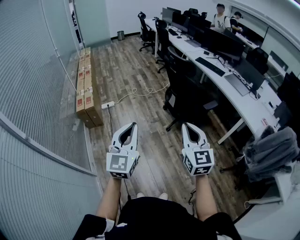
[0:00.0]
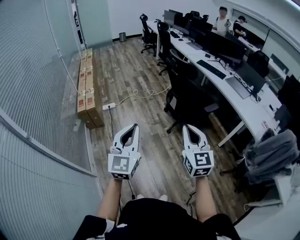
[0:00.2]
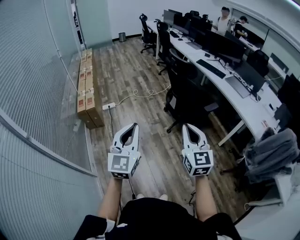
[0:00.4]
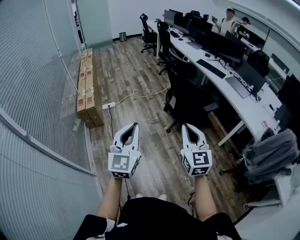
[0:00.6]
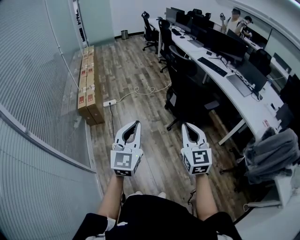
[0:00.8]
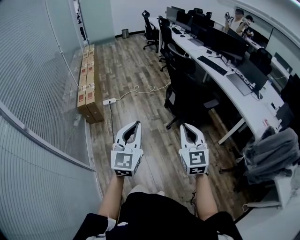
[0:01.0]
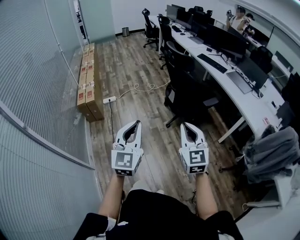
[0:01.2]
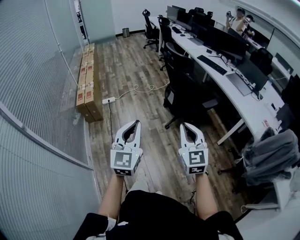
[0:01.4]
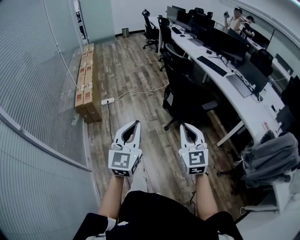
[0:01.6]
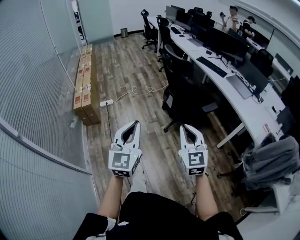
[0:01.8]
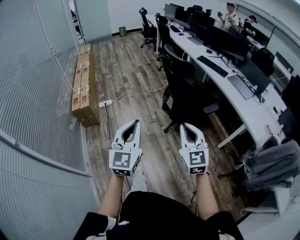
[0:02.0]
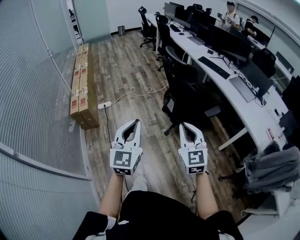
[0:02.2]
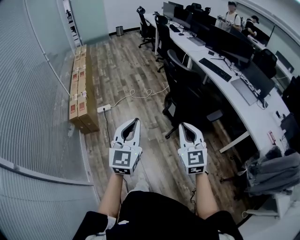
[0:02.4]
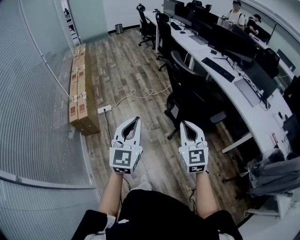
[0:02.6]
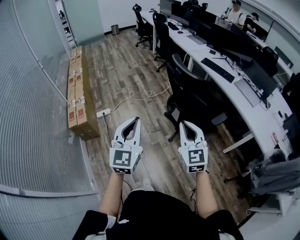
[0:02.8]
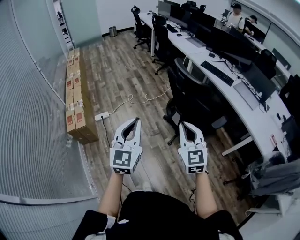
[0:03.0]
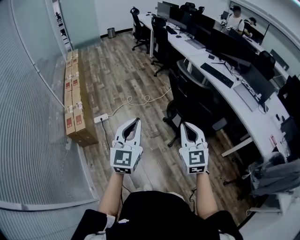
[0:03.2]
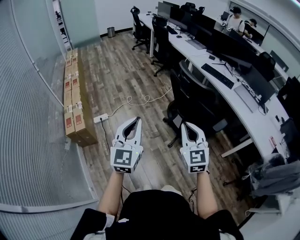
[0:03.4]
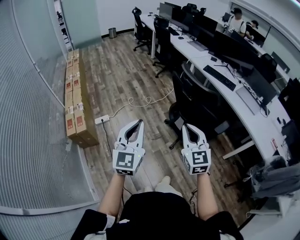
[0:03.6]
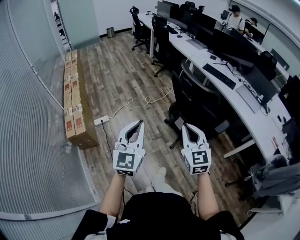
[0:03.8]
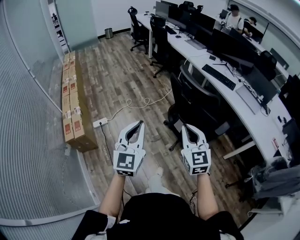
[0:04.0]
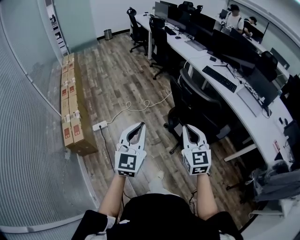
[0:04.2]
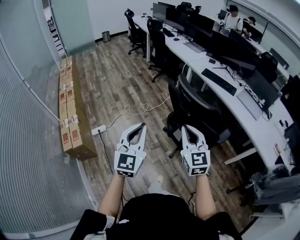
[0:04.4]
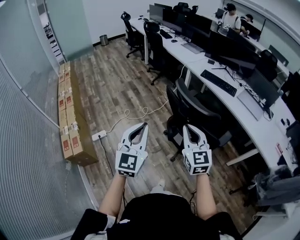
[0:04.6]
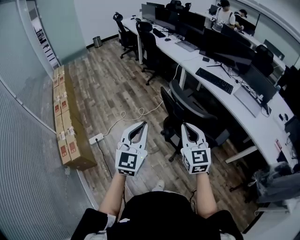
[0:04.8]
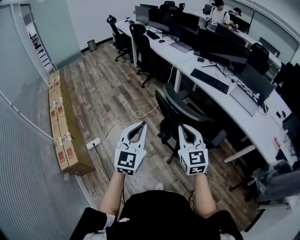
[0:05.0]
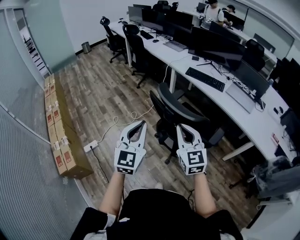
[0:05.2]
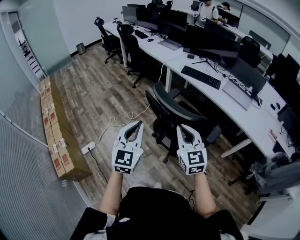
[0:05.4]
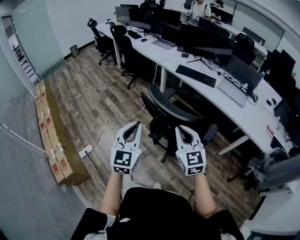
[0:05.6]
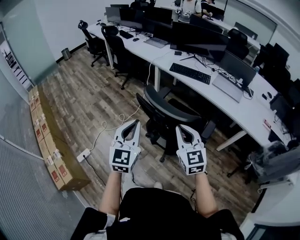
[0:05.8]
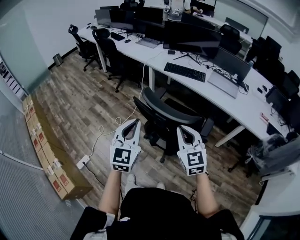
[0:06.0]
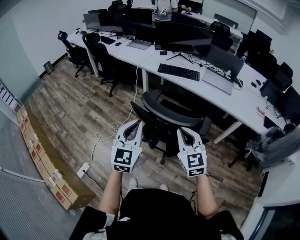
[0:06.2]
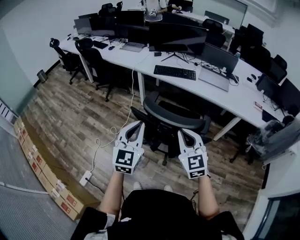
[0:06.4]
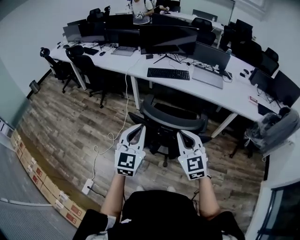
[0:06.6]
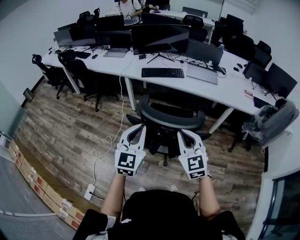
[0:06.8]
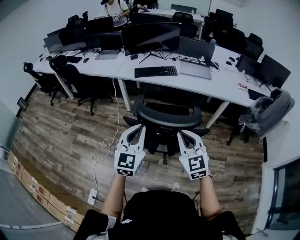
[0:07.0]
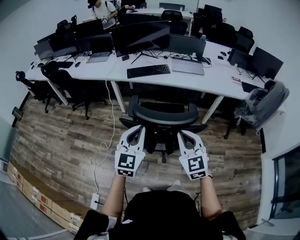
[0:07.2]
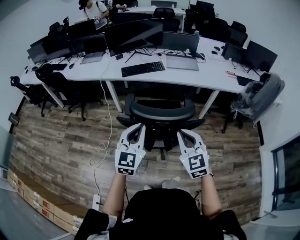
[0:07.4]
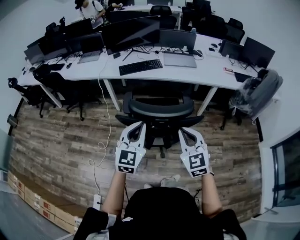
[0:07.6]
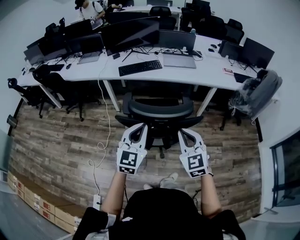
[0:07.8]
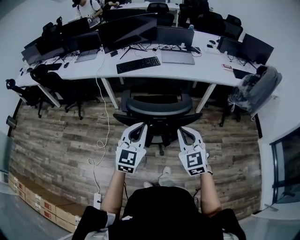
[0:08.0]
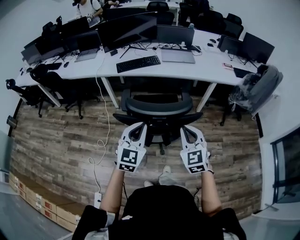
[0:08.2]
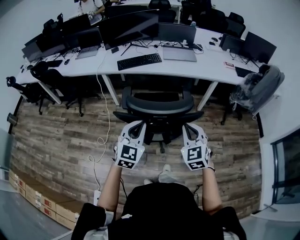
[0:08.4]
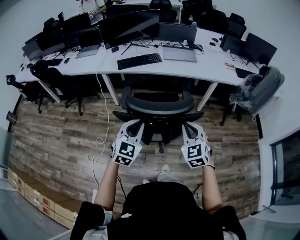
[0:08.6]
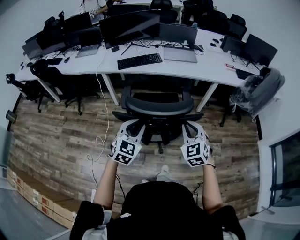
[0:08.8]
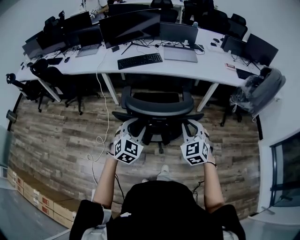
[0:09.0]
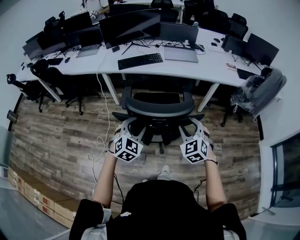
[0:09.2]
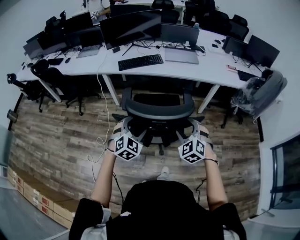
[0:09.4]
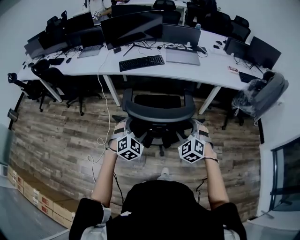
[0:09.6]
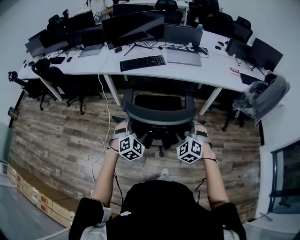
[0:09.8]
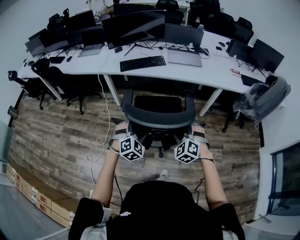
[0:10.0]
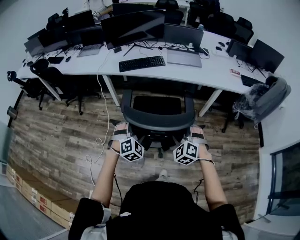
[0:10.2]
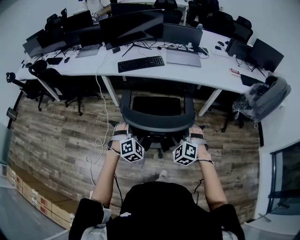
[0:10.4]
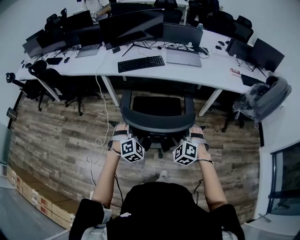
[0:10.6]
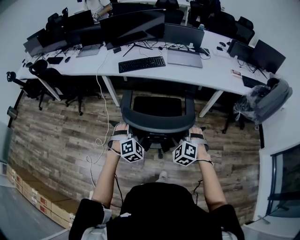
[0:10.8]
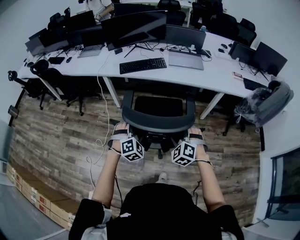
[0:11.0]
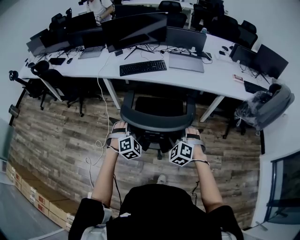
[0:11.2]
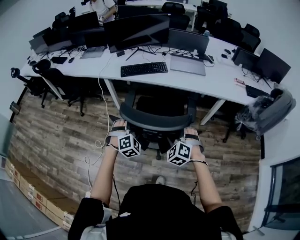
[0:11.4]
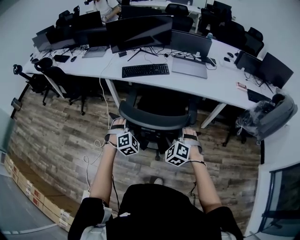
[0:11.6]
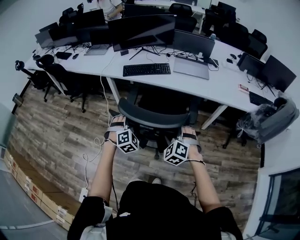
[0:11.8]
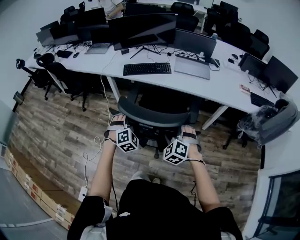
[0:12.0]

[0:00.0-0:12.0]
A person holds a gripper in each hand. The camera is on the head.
0:00.0 to 0:01.6: Both grippers travel together to the right, approximately 5 cm.
0:01.6 to 0:03.0: The two grippers go some 30 cm forward.
0:03.0 to 0:04.4: Both grippers travel together forward, about 15 cm.
0:04.4 to 0:06.0: The right gripper heads forward and to the right, covering approximately 15 cm, while the left gripper travels forward by roughly 20 cm, and turns by about 20 degrees.
0:06.0 to 0:07.6: The right gripper changes place by approximately 5 cm, and swivels approximately 30 degrees, while the left gripper ends up about 5 cm from where it was, and turns by approximately 40 degrees.
0:07.6 to 0:09.0: The left gripper goes approximately 10 cm downward, and changes its angle by about 30 degrees. The right gripper is displaced downward and forward by approximately 10 cm.
0:09.0 to 0:10.4: The right gripper is displaced downward and forward by about 10 cm, swivels roughly 30 degrees, and opens, while the left gripper heads forward and downward, covering about 10 cm, turns by approximately 30 degrees, and opens its fingers.
0:10.4 to 0:12.0: The two grippers go roughly 10 cm forward.

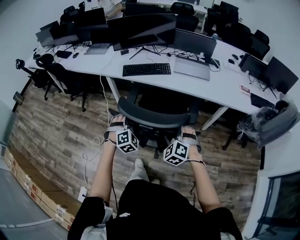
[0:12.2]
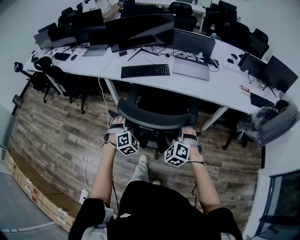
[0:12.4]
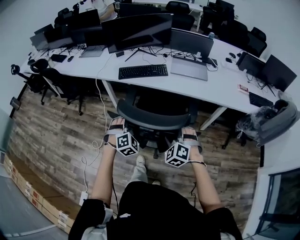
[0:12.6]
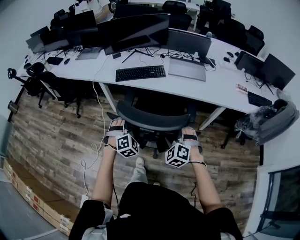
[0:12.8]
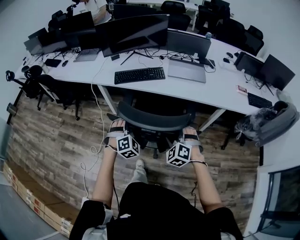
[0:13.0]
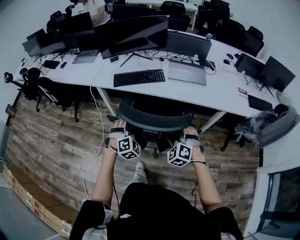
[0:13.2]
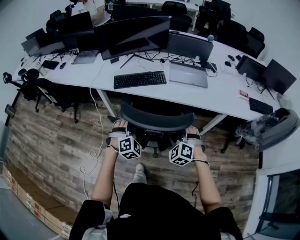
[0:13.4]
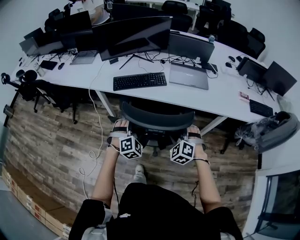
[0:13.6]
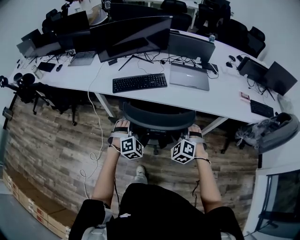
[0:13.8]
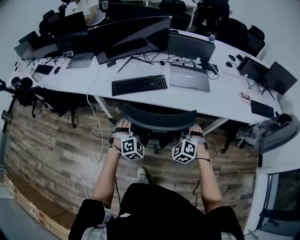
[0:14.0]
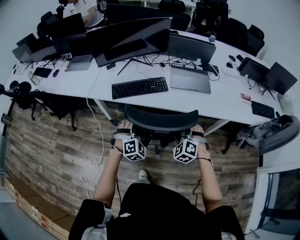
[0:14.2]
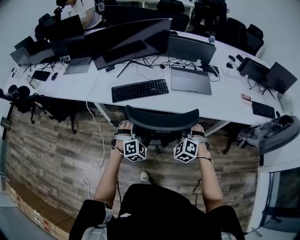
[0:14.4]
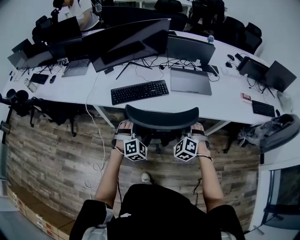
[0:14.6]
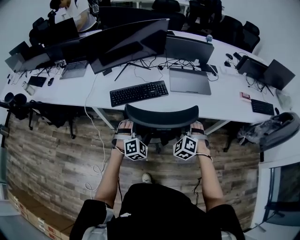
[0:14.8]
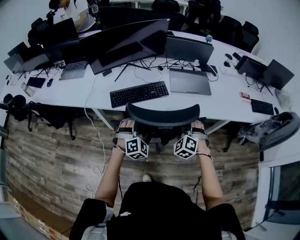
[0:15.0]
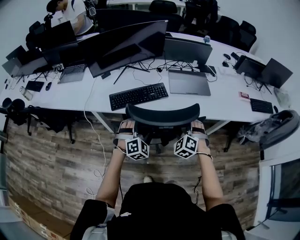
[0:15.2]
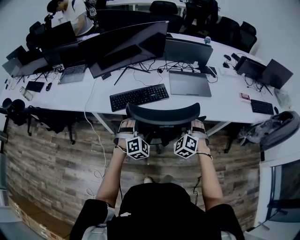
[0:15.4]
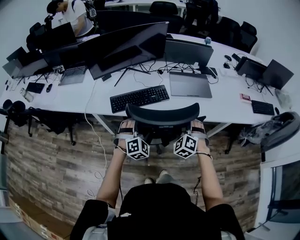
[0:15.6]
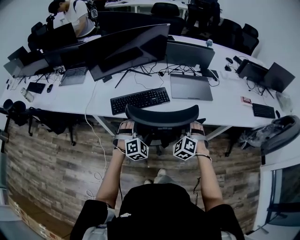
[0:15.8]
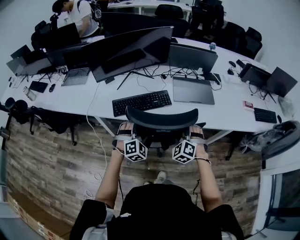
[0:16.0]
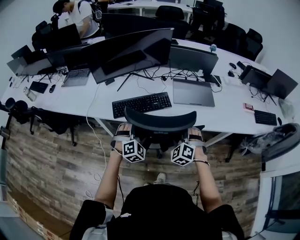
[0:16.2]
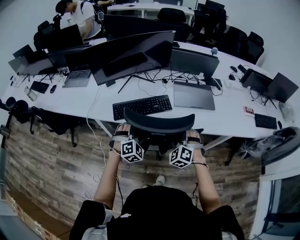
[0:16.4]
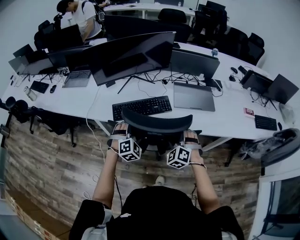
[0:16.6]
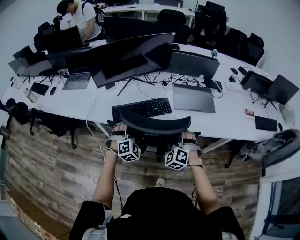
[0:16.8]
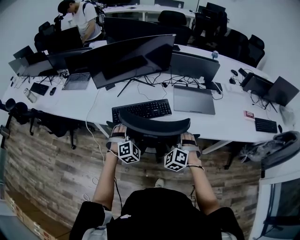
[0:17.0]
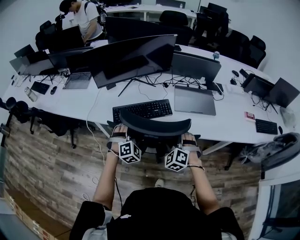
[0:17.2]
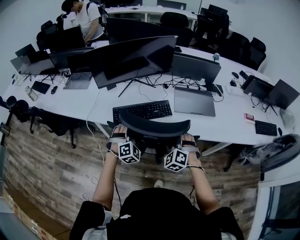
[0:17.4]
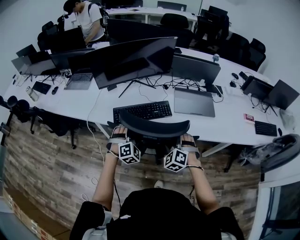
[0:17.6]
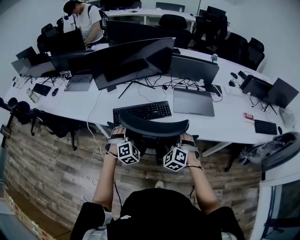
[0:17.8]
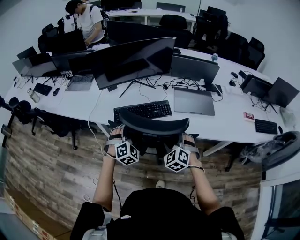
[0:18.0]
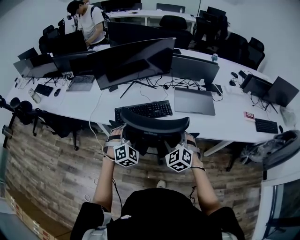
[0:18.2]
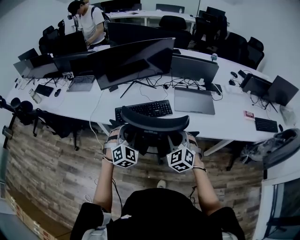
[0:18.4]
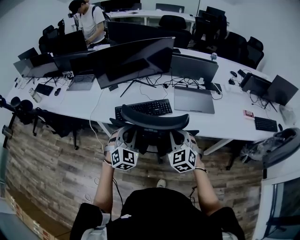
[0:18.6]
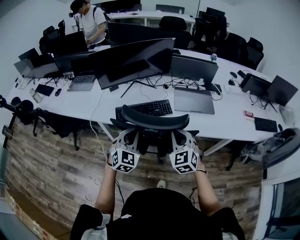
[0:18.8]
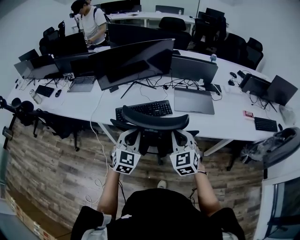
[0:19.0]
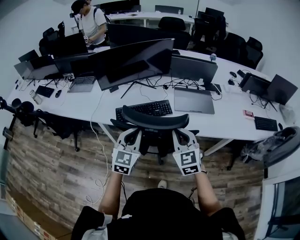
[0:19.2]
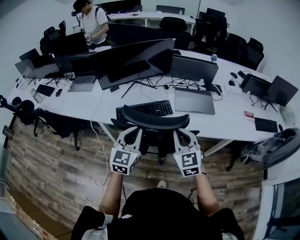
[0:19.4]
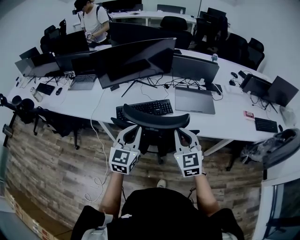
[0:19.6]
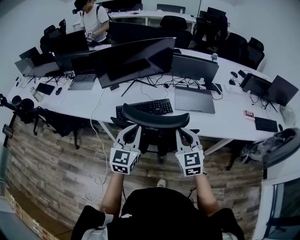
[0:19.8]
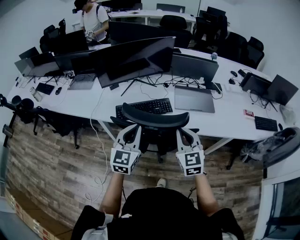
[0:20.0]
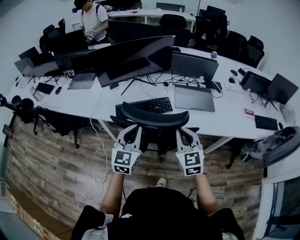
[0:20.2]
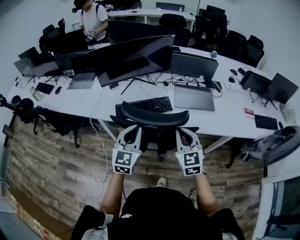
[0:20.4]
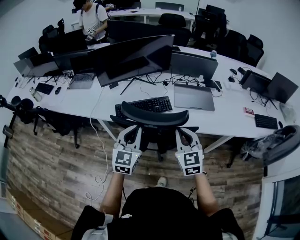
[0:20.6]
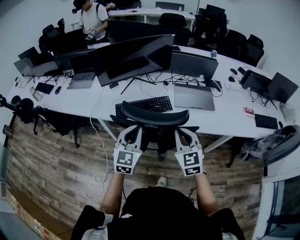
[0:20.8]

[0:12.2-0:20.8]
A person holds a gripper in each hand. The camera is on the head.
0:12.2 to 0:13.6: Both grippers move forward, approximately 15 cm.
0:13.6 to 0:15.0: Both grippers travel together forward, approximately 15 cm.
0:15.0 to 0:16.6: The grippers both shift forward by approximately 5 cm.
0:16.6 to 0:18.0: The grippers make only small movements.
0:18.0 to 0:19.4: The right gripper goes some 10 cm upward, changes its angle by roughly 40 degrees, and closes. The left gripper moves upward and backward, some 15 cm, rolls counterclockwise, seen from behind, by roughly 50 degrees, and closes up.
0:19.4 to 0:20.8: The grippers move only a little.

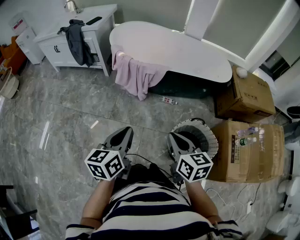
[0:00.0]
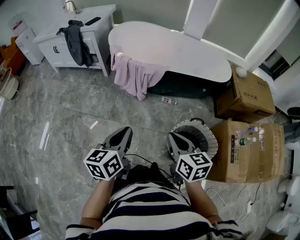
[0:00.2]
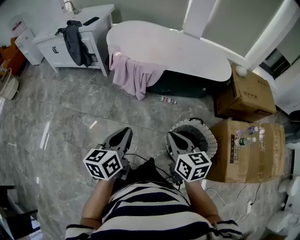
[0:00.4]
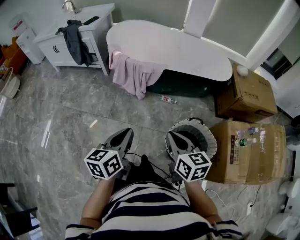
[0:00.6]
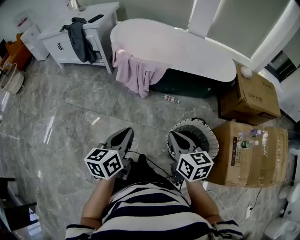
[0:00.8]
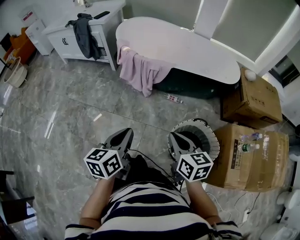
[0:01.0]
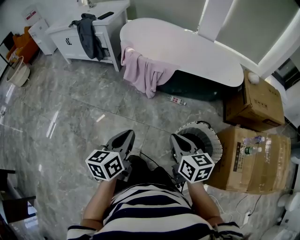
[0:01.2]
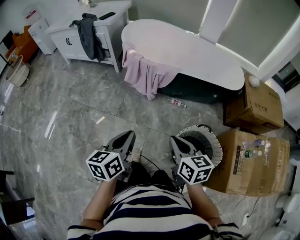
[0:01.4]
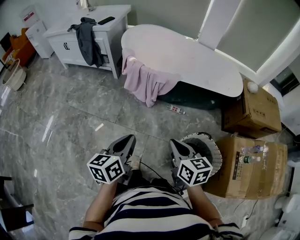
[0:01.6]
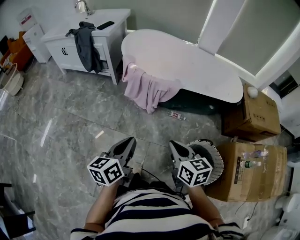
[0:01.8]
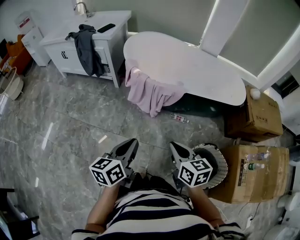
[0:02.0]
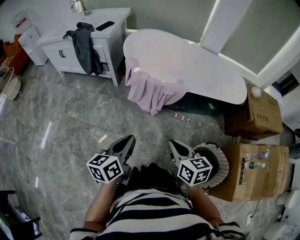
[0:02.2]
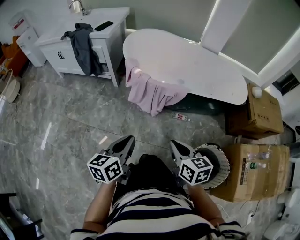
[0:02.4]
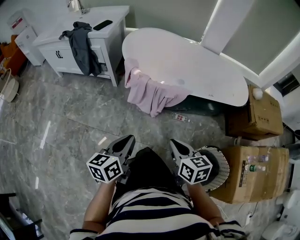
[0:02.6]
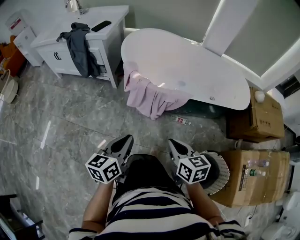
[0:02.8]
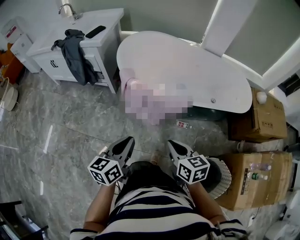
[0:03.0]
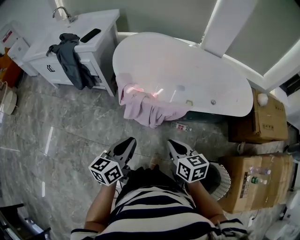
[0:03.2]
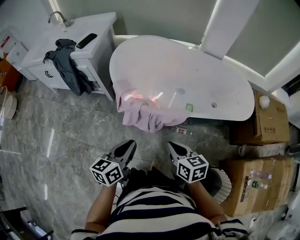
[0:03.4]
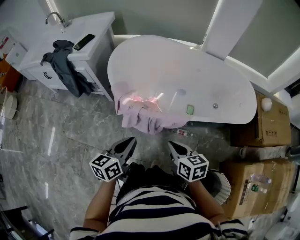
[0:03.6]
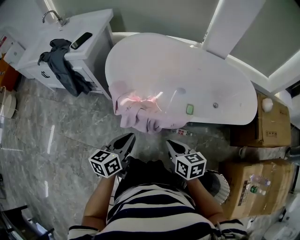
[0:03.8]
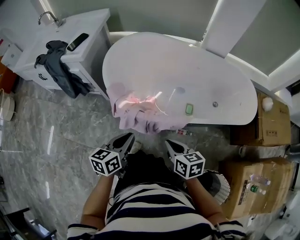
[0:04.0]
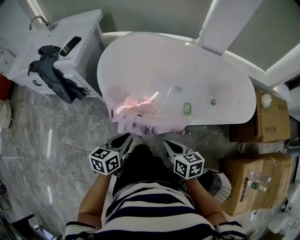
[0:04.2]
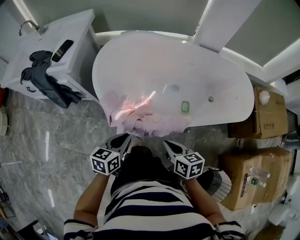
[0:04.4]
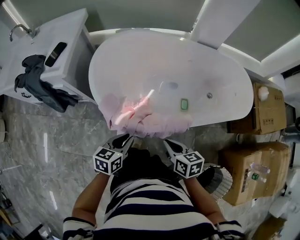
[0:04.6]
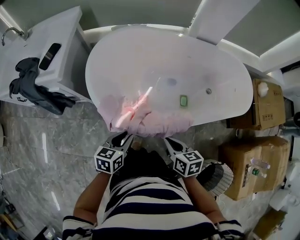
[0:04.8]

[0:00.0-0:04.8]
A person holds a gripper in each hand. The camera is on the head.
0:00.0 to 0:01.6: The left gripper moves roughly 5 cm. The right gripper heads forward, covering about 5 cm.
0:01.6 to 0:03.2: The grippers both shift forward by about 25 cm.
0:03.2 to 0:04.8: The grippers both shift forward and downward by about 25 cm. The left gripper rotates roughly 30 degrees.
